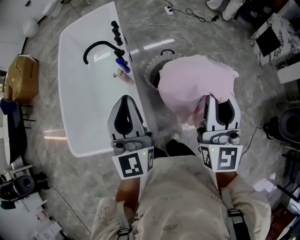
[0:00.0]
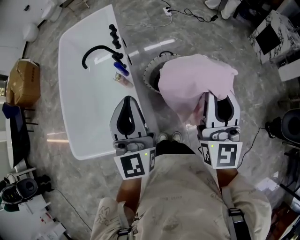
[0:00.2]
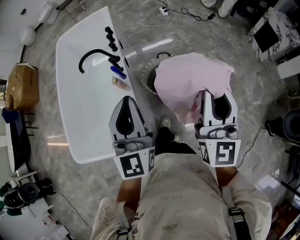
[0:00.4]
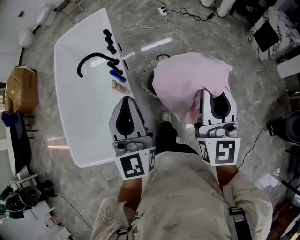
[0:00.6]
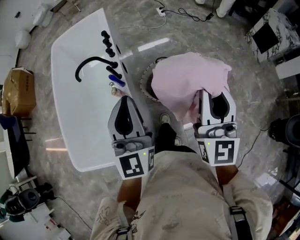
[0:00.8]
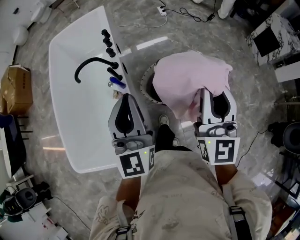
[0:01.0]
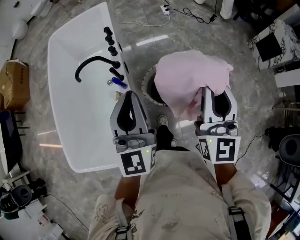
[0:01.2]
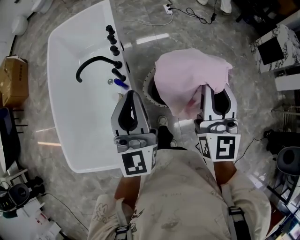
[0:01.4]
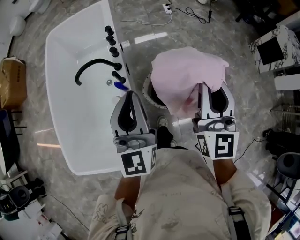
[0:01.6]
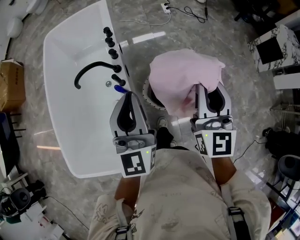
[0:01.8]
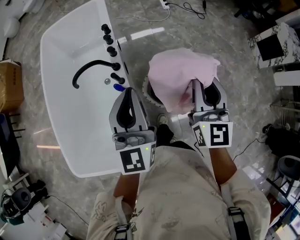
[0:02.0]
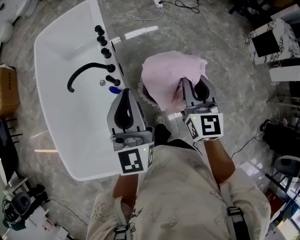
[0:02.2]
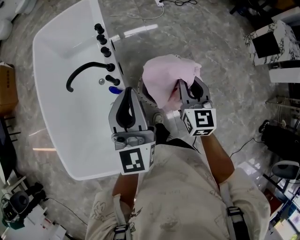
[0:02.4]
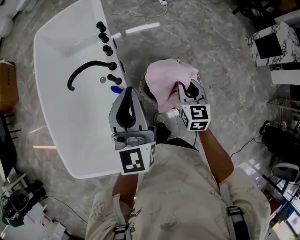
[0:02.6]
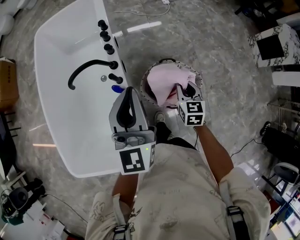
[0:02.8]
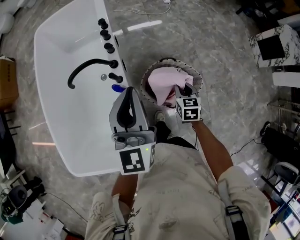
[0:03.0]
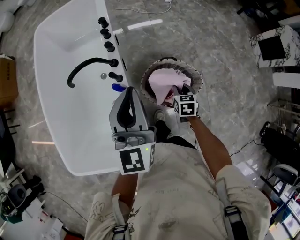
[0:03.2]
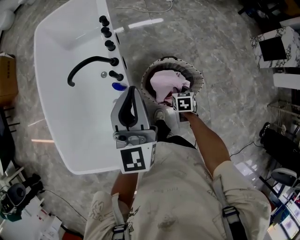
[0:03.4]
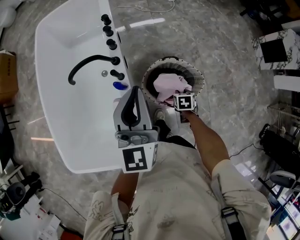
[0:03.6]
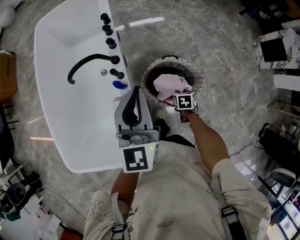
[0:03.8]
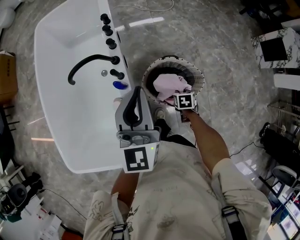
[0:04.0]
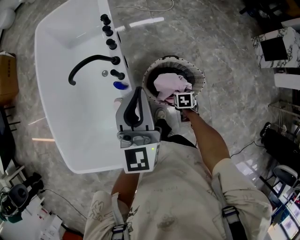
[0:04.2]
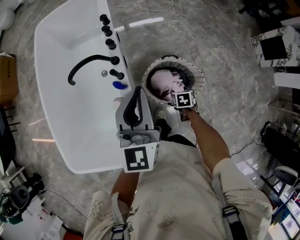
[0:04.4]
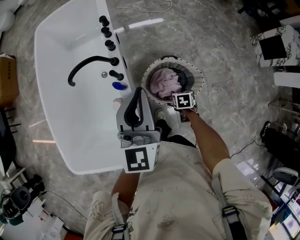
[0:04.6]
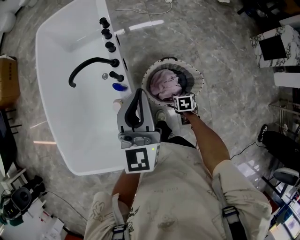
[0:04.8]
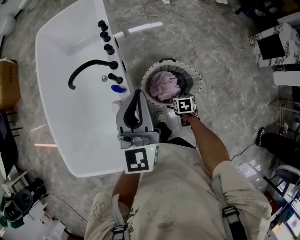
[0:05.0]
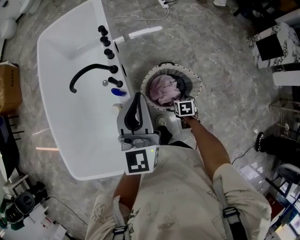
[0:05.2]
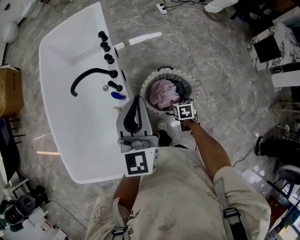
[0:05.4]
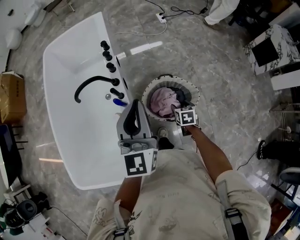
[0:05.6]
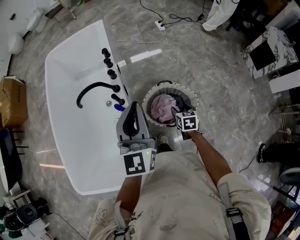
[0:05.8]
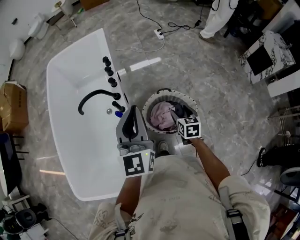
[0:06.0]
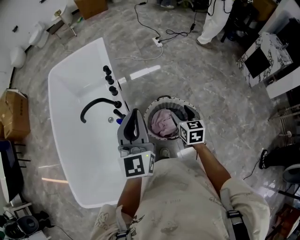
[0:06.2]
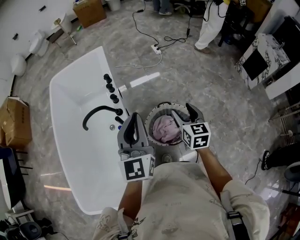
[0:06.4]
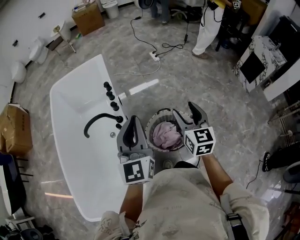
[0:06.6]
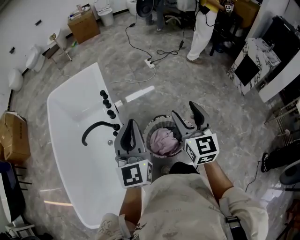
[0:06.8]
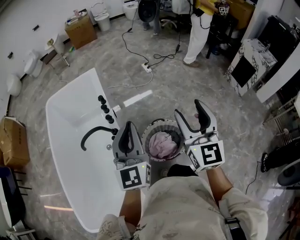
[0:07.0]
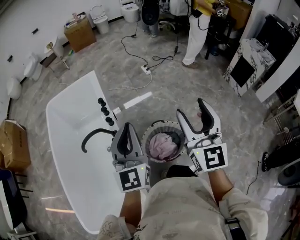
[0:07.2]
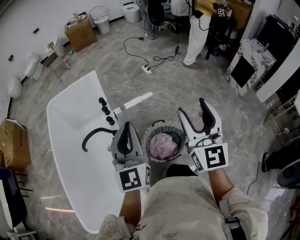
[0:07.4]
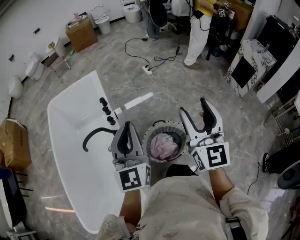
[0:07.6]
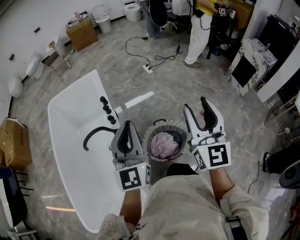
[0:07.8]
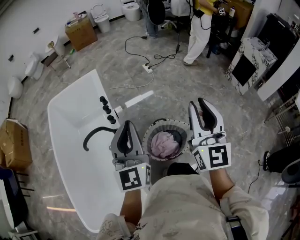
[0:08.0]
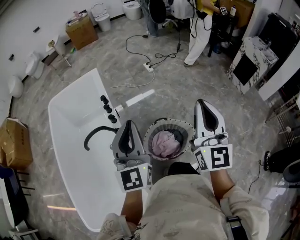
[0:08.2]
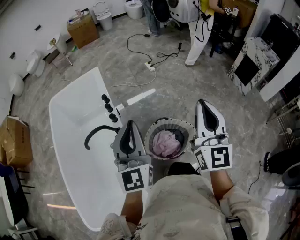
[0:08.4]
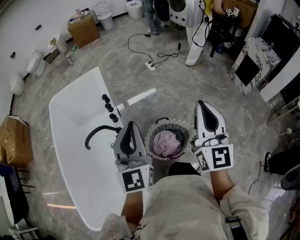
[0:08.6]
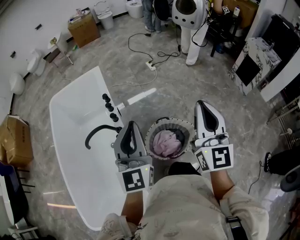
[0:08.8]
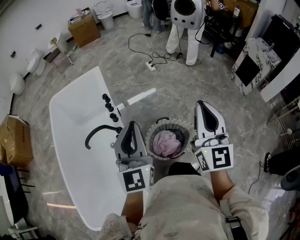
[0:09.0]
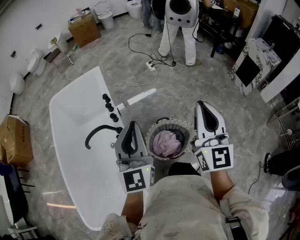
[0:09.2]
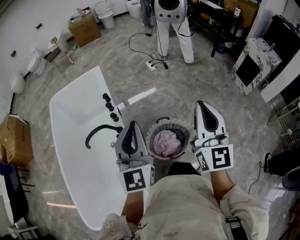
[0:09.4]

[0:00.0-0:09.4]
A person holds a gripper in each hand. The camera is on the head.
0:00.0 to 0:01.6: The grippers both shift forward by approximately 25 cm.
0:01.6 to 0:03.2: The right gripper moves downward, about 40 cm, and tips its fingers downward by approximately 50 degrees. Meanwhile the left gripper goes roughly 10 cm forward and downward.
0:03.2 to 0:04.8: The right gripper goes some 10 cm downward and backward, and opens its fingers.
0:04.8 to 0:06.2: The right gripper heads upward, covering approximately 25 cm, and tips its fingers upward by some 40 degrees.
0:06.2 to 0:07.8: The right gripper goes about 35 cm upward, and points its fingers approximately 40 degrees further upward; the left gripper travels upward by about 10 cm.
0:07.8 to 0:09.4: The right gripper closes its fingers.

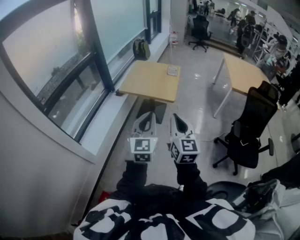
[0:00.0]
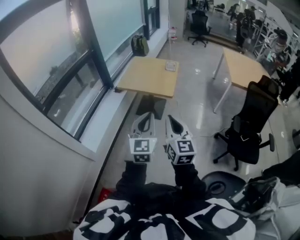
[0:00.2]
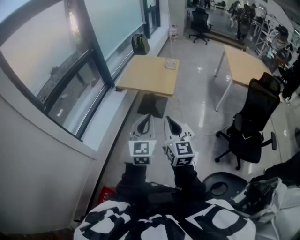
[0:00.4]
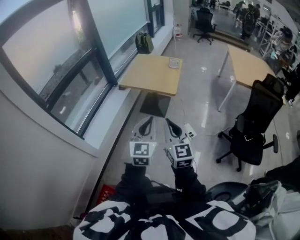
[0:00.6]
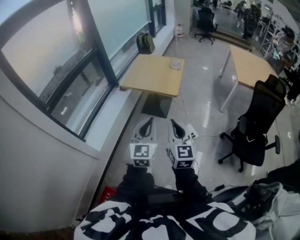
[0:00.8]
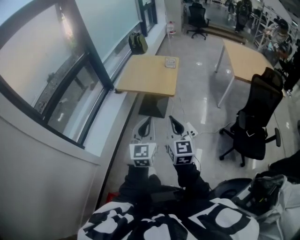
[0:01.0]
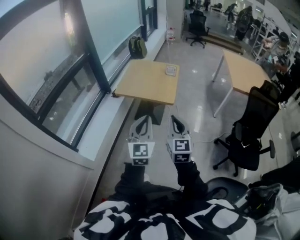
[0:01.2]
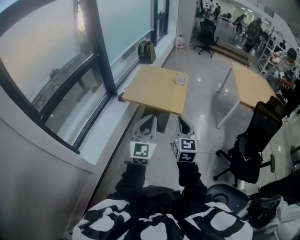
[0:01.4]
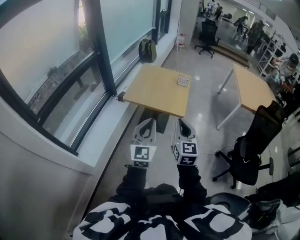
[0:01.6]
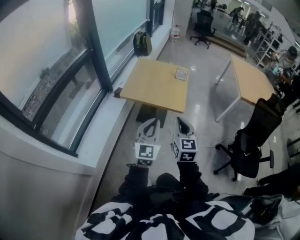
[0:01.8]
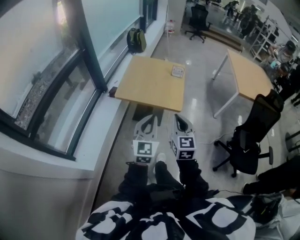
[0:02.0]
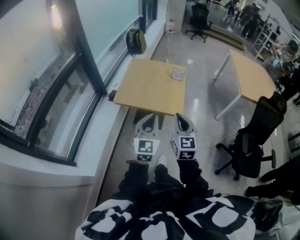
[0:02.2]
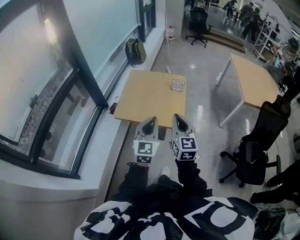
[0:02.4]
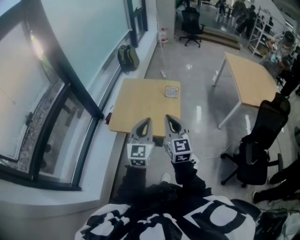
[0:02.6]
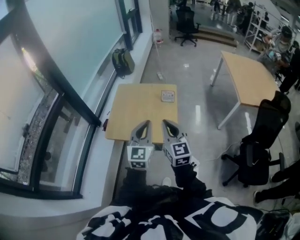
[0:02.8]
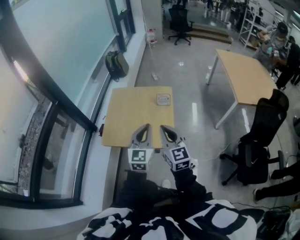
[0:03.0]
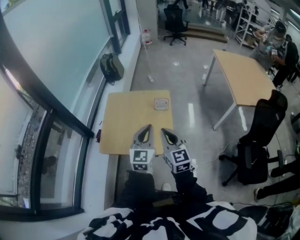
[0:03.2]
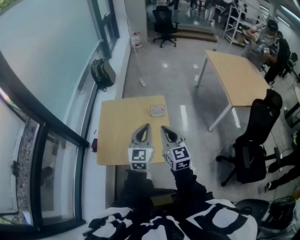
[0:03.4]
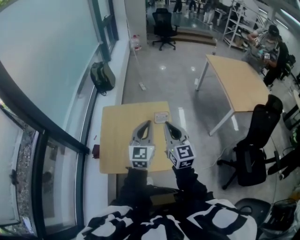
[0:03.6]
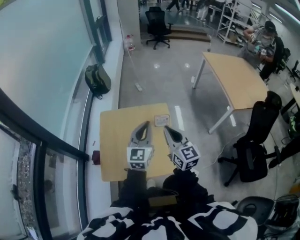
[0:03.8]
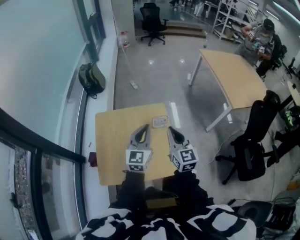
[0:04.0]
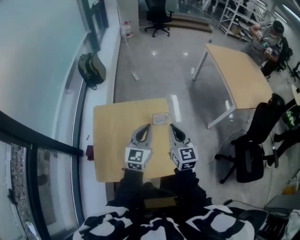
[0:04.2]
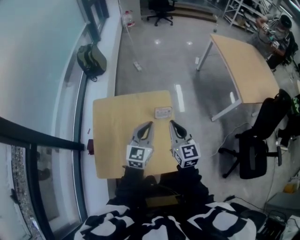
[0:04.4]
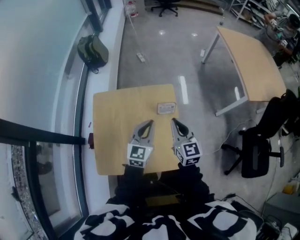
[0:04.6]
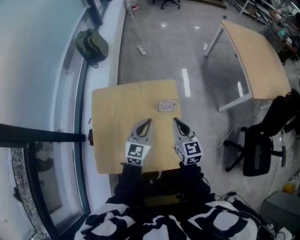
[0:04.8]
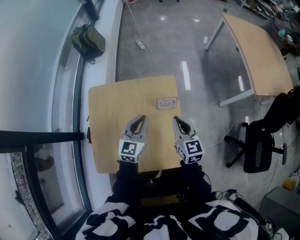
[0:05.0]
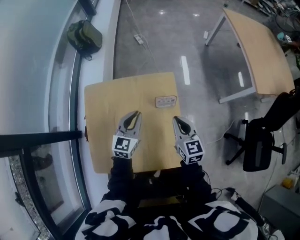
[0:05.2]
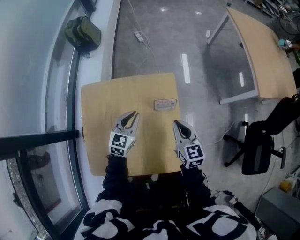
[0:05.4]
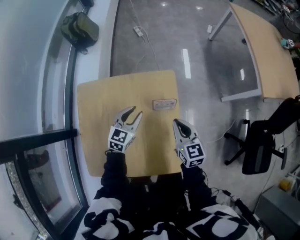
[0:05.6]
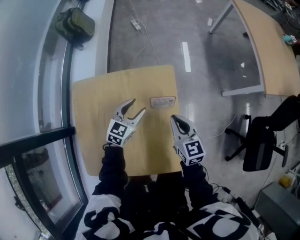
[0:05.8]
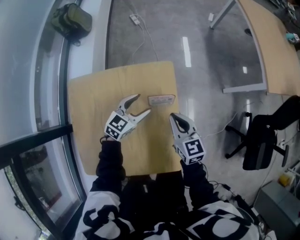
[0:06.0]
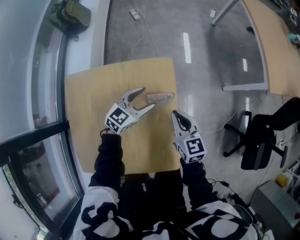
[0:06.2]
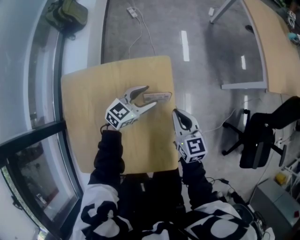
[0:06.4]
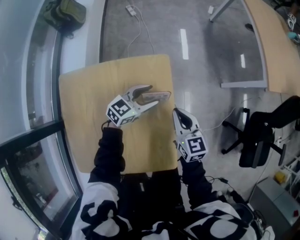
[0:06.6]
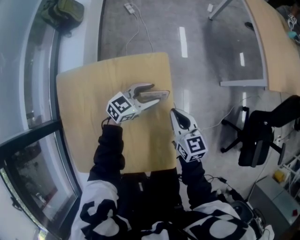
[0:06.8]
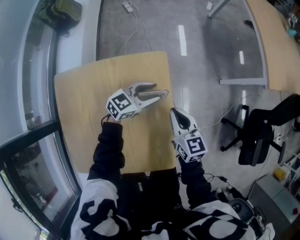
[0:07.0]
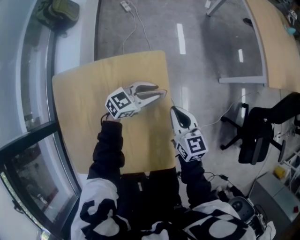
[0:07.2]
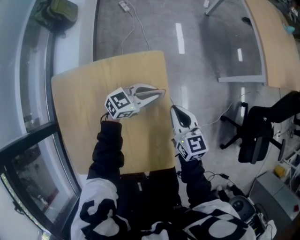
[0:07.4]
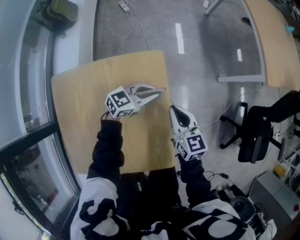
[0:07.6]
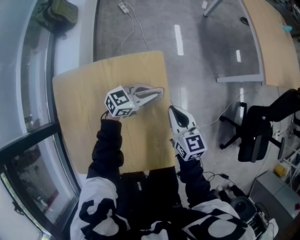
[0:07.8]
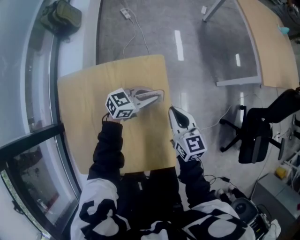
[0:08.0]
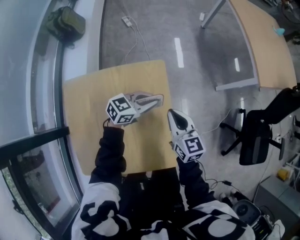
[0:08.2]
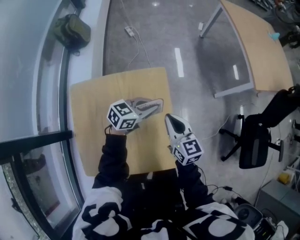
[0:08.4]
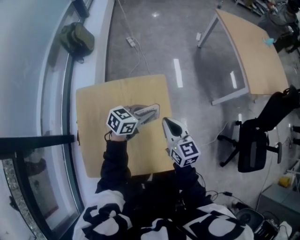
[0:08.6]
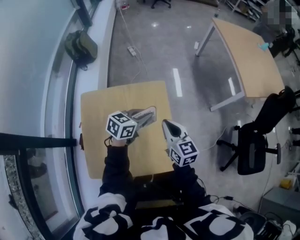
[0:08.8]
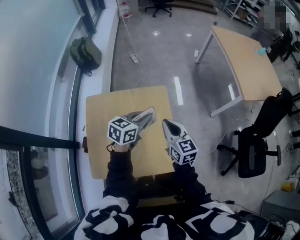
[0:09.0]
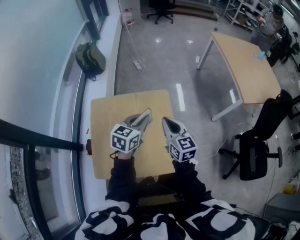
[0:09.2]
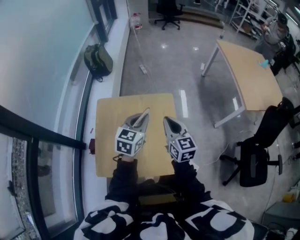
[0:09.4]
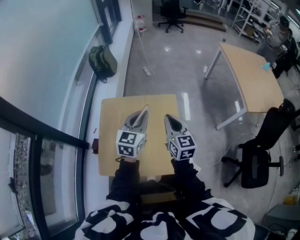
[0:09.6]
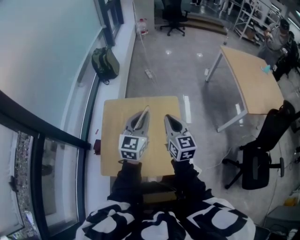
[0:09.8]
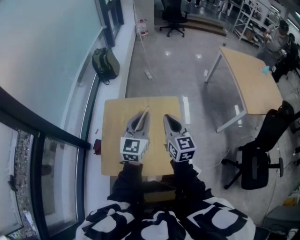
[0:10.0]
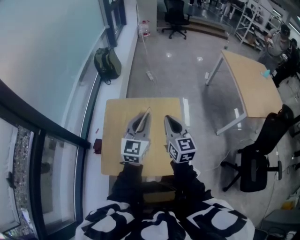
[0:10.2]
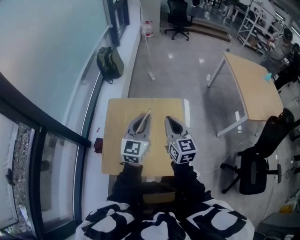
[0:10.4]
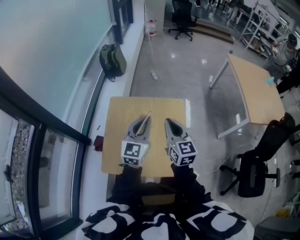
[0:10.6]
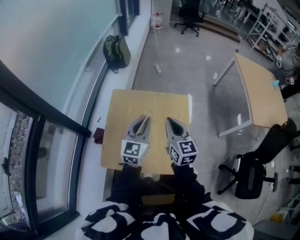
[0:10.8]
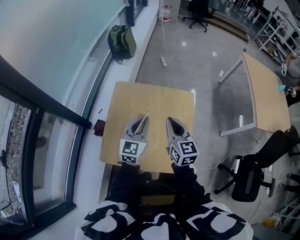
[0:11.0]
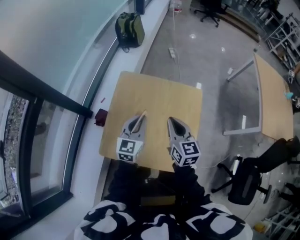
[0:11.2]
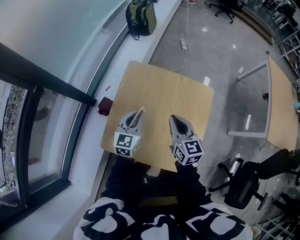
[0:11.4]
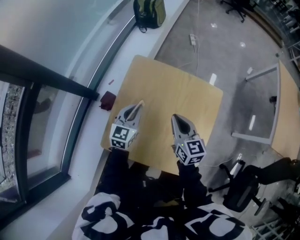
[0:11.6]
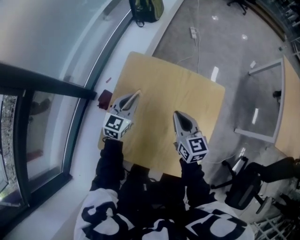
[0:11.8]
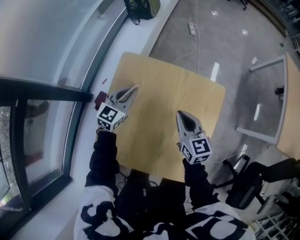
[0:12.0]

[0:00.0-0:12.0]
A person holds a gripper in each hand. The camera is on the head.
0:00.0 to 0:01.6: The left gripper travels forward and to the left by some 20 cm, while the right gripper moves forward, roughly 20 cm.
0:01.6 to 0:03.0: Both grippers travel together forward, roughly 35 cm.
0:03.0 to 0:04.4: The right gripper is displaced forward by about 25 cm. The left gripper goes roughly 30 cm forward and downward.
0:04.4 to 0:06.0: The right gripper travels downward by approximately 20 cm. Meanwhile the left gripper shifts about 25 cm downward and forward, swivels approximately 30 degrees, and opens.
0:06.0 to 0:07.6: The left gripper shifts roughly 10 cm to the right, changes its angle by roughly 30 degrees, and closes.
0:07.6 to 0:09.0: Both grippers travel together upward and backward, roughly 15 cm. The left gripper changes its angle by roughly 30 degrees.
0:09.0 to 0:10.4: The left gripper heads upward, to the left and backward, covering approximately 20 cm, and changes its angle by approximately 50 degrees; the right gripper shifts about 15 cm upward and to the left.
0:10.4 to 0:12.0: The right gripper shifts about 25 cm downward and forward, and turns by approximately 30 degrees. The left gripper moves downward, forward and to the left, some 35 cm.

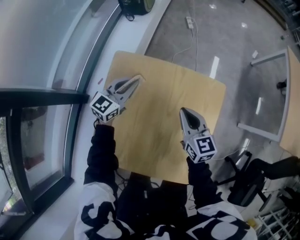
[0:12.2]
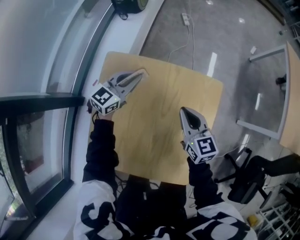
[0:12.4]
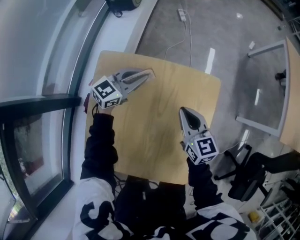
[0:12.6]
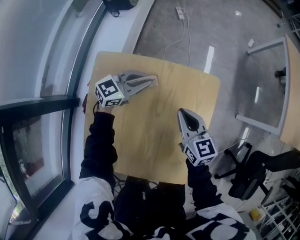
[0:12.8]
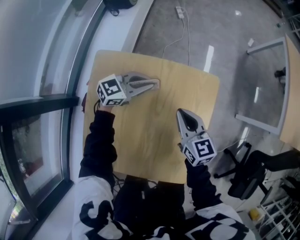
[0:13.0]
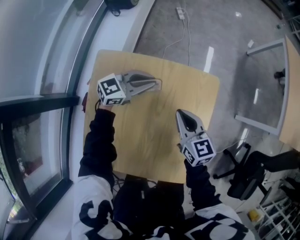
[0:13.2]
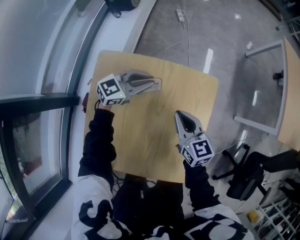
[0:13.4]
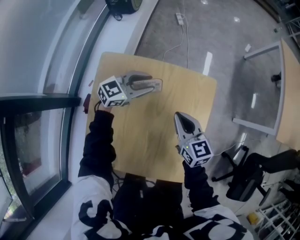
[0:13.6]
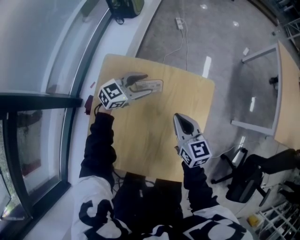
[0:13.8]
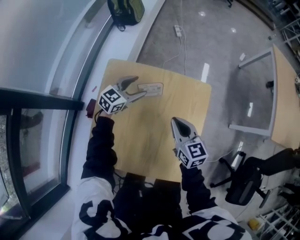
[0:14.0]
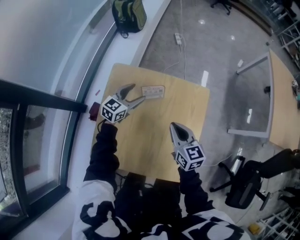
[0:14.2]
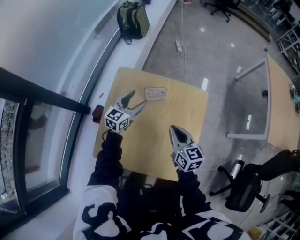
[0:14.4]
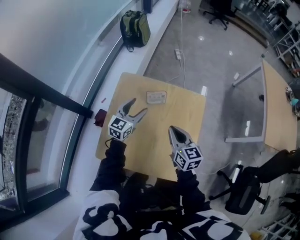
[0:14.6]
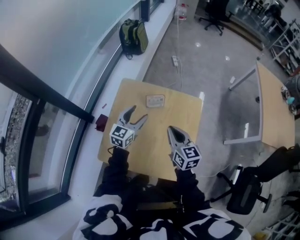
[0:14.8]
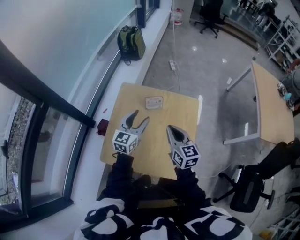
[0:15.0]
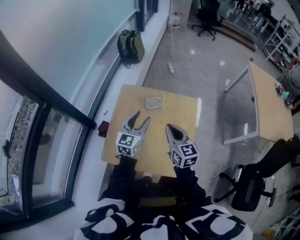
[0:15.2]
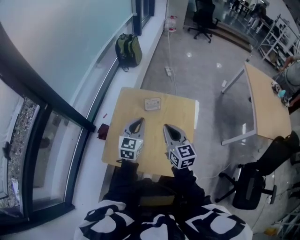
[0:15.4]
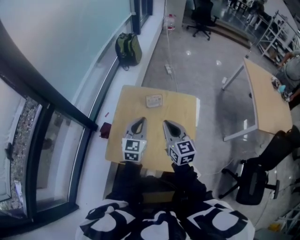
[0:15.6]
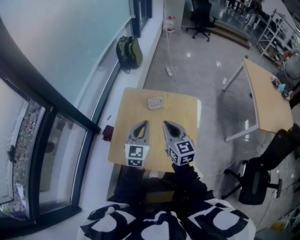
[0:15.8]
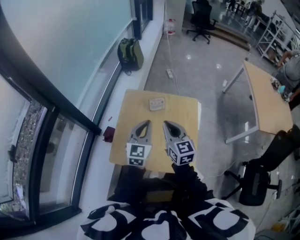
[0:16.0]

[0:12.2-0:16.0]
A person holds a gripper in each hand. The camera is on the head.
0:12.2 to 0:13.4: The left gripper is displaced to the right by about 10 cm, and changes its angle by roughly 30 degrees.
0:13.4 to 0:14.8: The right gripper is displaced upward and backward by some 15 cm; the left gripper travels backward, upward and to the left by approximately 15 cm, turns by some 40 degrees, and opens up.
0:14.8 to 0:16.0: The left gripper heads upward and backward, covering approximately 15 cm, and closes its fingers. The right gripper heads upward and to the left, covering about 10 cm.
